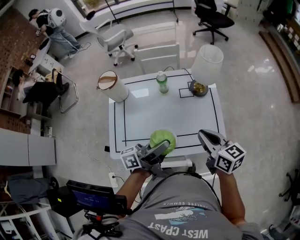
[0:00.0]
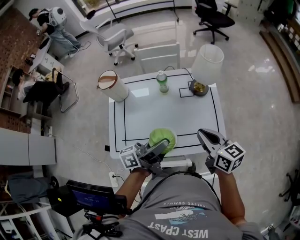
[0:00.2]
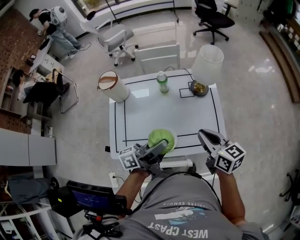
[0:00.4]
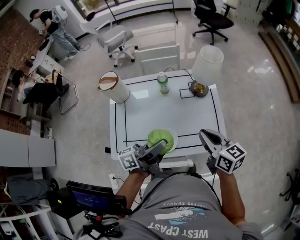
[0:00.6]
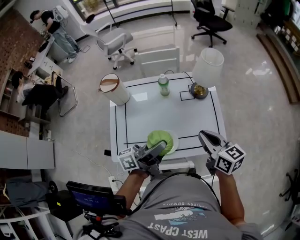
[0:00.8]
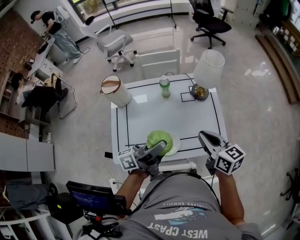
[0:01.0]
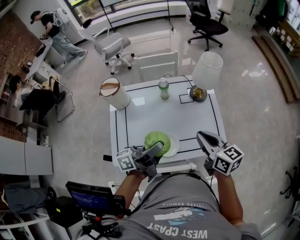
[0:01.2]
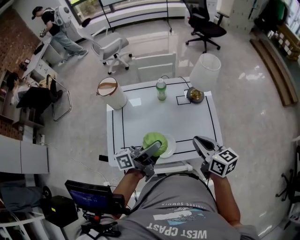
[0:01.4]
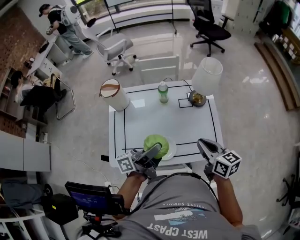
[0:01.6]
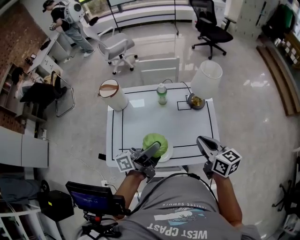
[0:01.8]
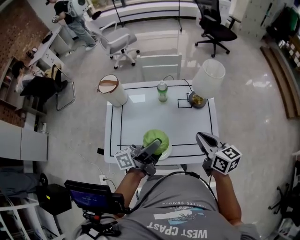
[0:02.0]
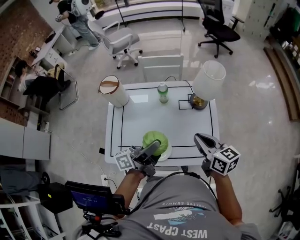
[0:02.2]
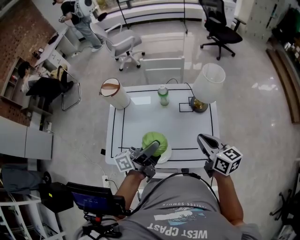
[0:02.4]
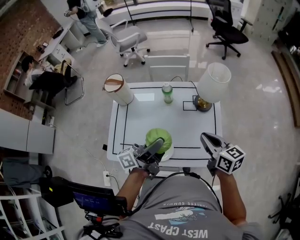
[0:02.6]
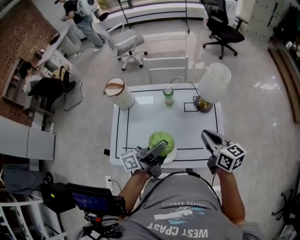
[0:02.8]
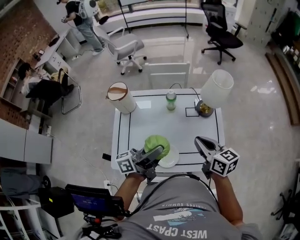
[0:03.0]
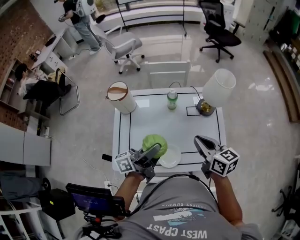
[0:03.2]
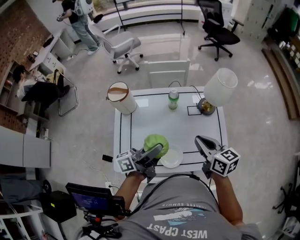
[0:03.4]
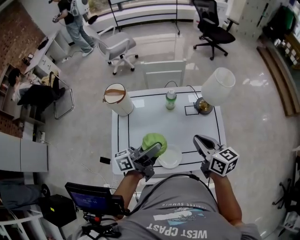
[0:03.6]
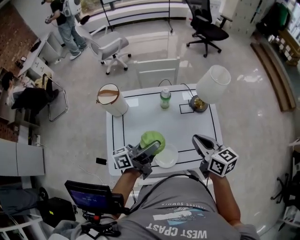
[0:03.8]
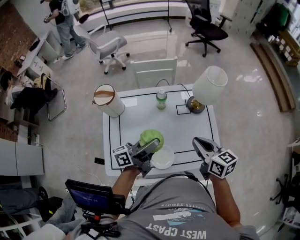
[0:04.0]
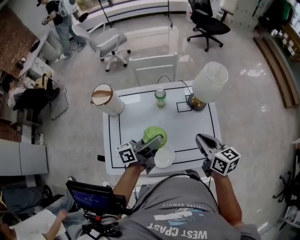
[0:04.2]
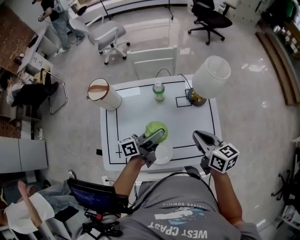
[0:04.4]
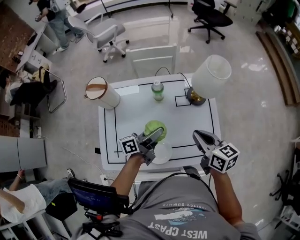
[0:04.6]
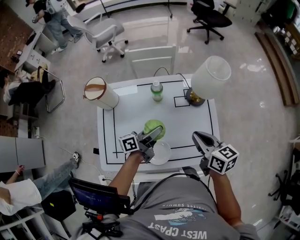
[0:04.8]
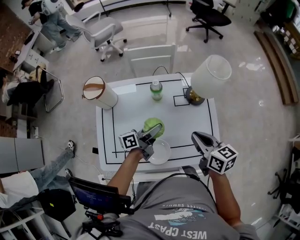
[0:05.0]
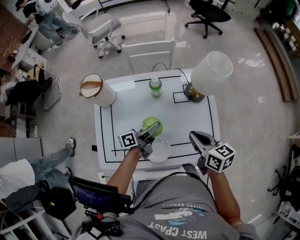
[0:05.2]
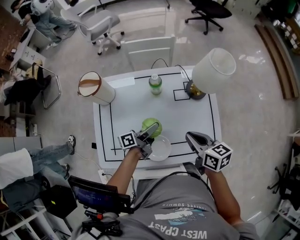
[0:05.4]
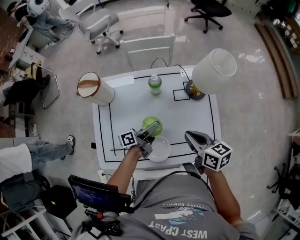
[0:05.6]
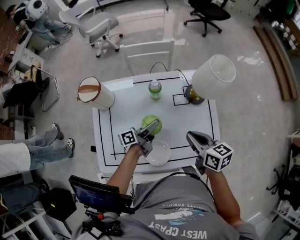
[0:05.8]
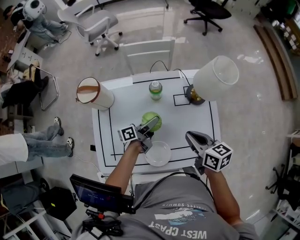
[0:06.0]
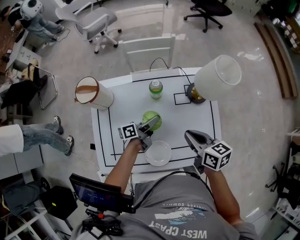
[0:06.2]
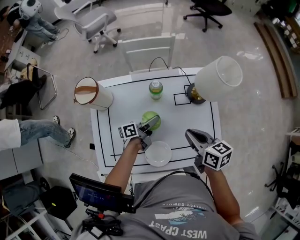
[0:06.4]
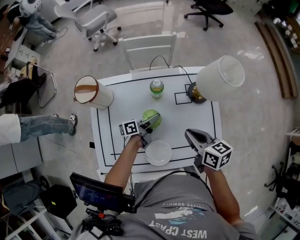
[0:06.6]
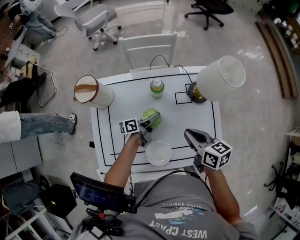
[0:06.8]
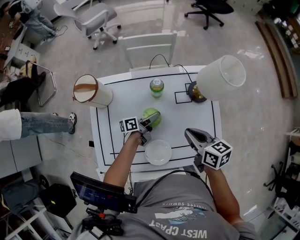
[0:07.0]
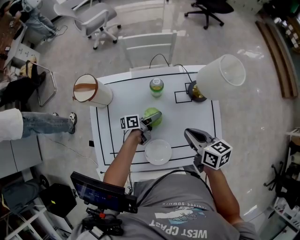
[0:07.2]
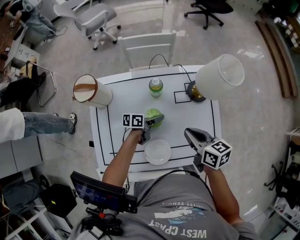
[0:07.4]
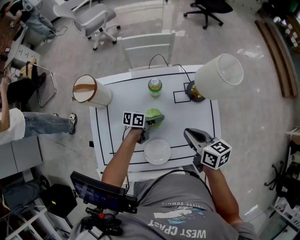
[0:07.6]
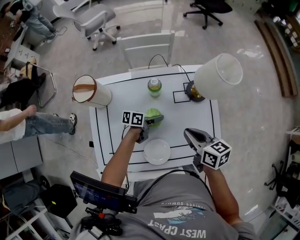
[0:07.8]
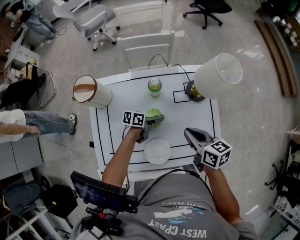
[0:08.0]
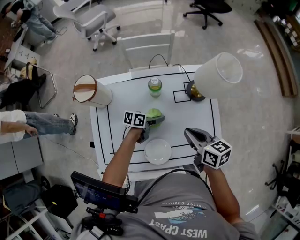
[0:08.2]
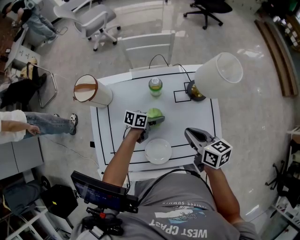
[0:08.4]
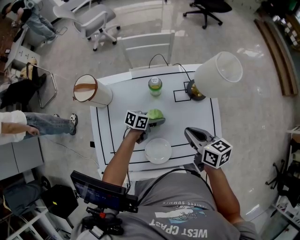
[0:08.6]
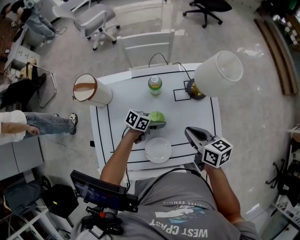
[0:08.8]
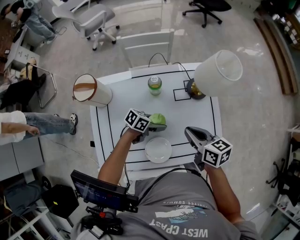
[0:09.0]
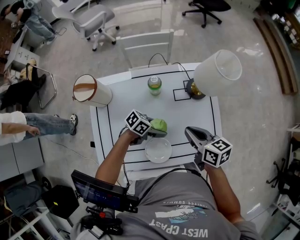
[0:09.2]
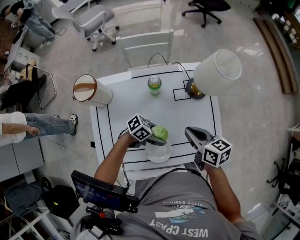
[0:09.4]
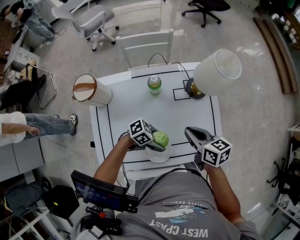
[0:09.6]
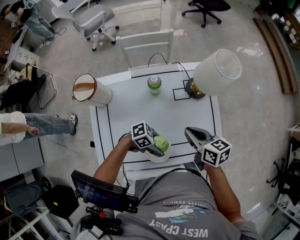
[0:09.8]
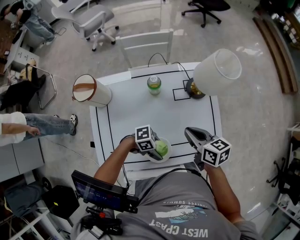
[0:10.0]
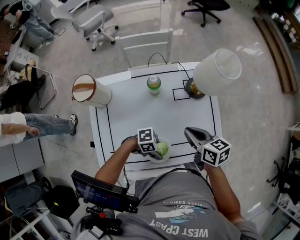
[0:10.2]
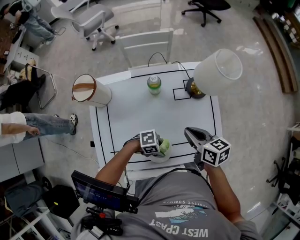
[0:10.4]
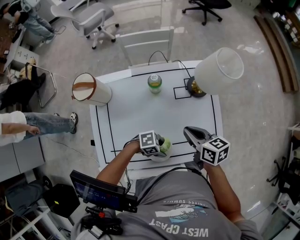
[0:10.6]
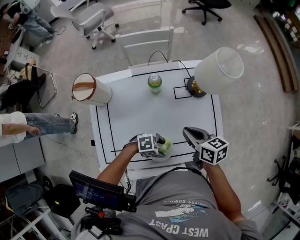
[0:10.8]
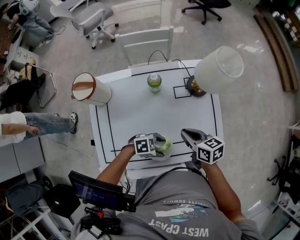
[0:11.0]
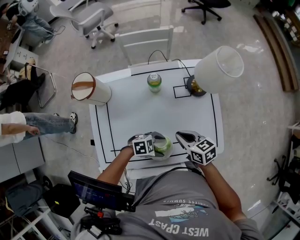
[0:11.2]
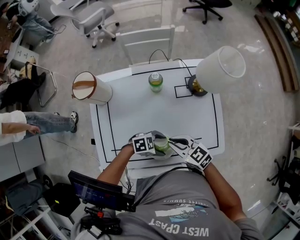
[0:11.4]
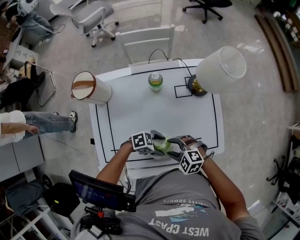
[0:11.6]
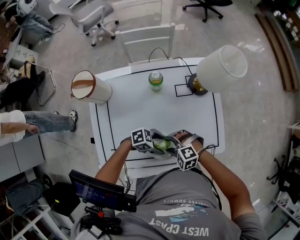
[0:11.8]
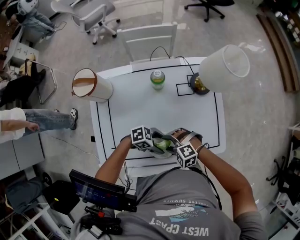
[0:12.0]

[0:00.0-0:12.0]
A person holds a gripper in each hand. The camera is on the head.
0:00.0 to 0:01.6: The grippers stay close to where they were, moving slightly.
0:01.6 to 0:03.0: The right gripper is displaced forward by about 5 cm.
0:03.0 to 0:04.4: The left gripper heads downward and forward, covering roughly 15 cm.
0:04.4 to 0:06.0: The right gripper moves downward, some 5 cm. Meanwhile the left gripper travels downward and forward by roughly 15 cm.
0:06.0 to 0:07.6: The left gripper is displaced downward by about 10 cm, and rotates roughly 30 degrees.
0:07.6 to 0:09.0: The left gripper moves about 5 cm, and changes its angle by roughly 30 degrees.
0:09.0 to 0:10.4: The left gripper shifts by some 15 cm, rotates some 50 degrees, and closes up.
0:10.4 to 0:12.0: The left gripper opens. Meanwhile the right gripper shifts by some 20 cm, rolls counterclockwise, seen from behind, by some 80 degrees, and opens.

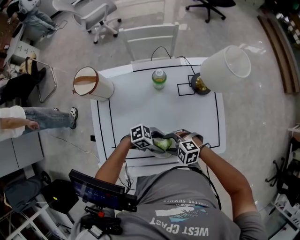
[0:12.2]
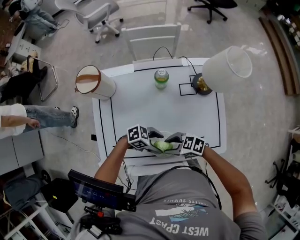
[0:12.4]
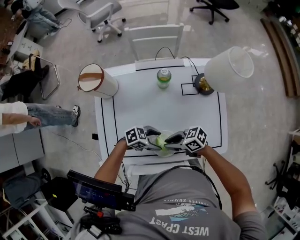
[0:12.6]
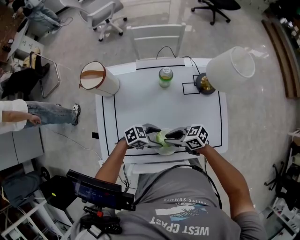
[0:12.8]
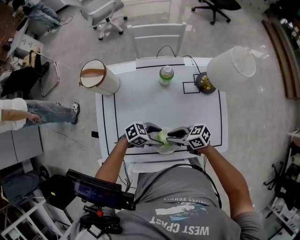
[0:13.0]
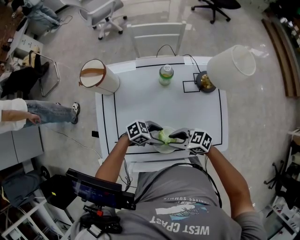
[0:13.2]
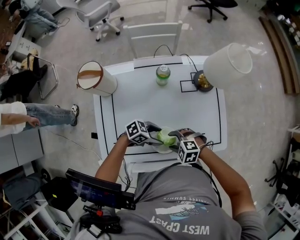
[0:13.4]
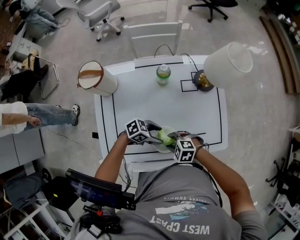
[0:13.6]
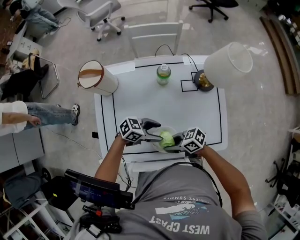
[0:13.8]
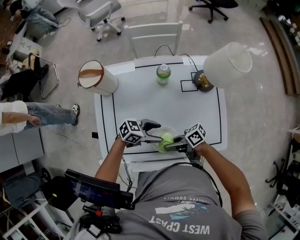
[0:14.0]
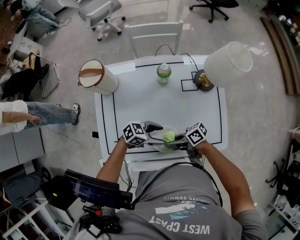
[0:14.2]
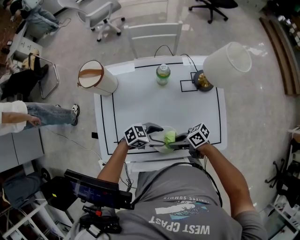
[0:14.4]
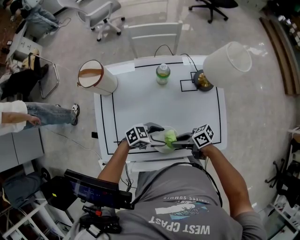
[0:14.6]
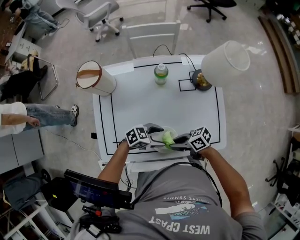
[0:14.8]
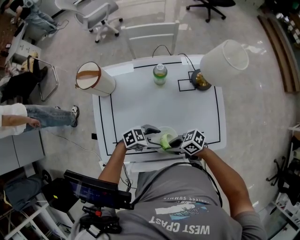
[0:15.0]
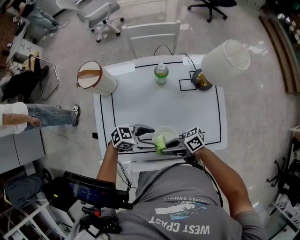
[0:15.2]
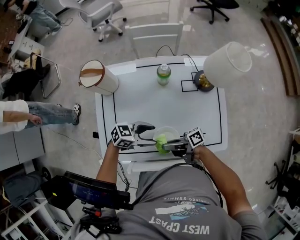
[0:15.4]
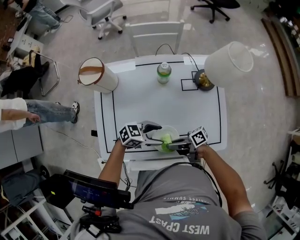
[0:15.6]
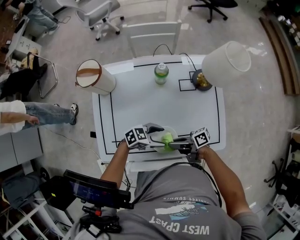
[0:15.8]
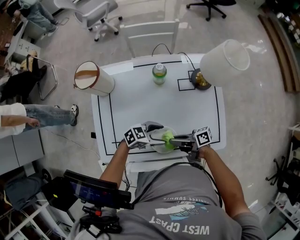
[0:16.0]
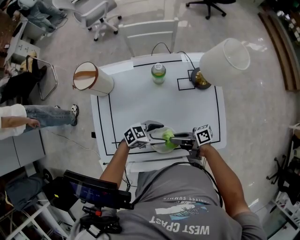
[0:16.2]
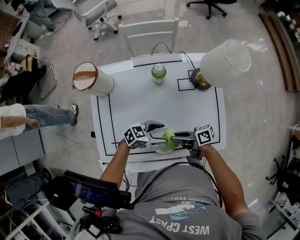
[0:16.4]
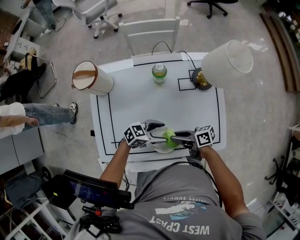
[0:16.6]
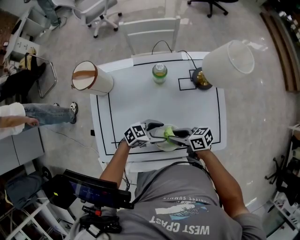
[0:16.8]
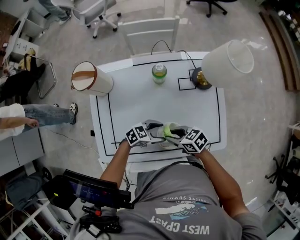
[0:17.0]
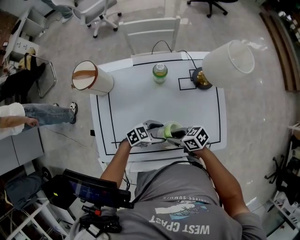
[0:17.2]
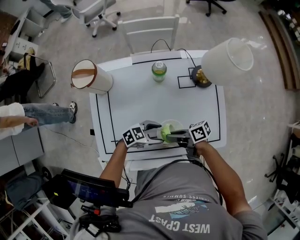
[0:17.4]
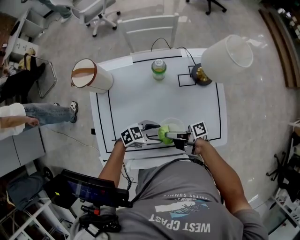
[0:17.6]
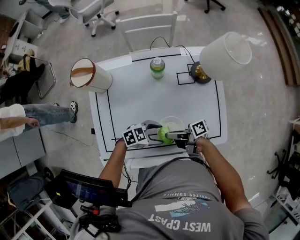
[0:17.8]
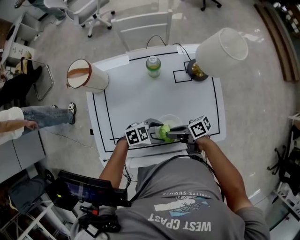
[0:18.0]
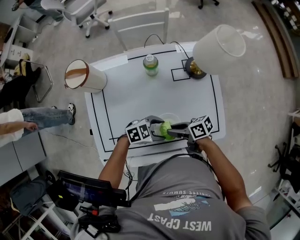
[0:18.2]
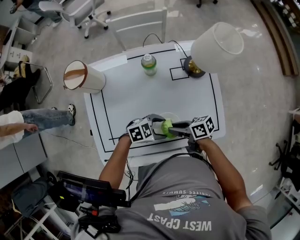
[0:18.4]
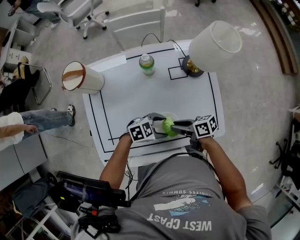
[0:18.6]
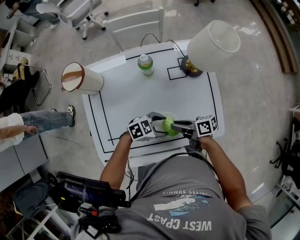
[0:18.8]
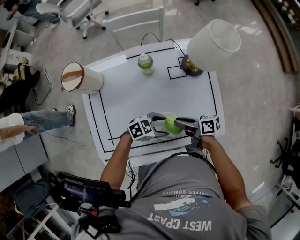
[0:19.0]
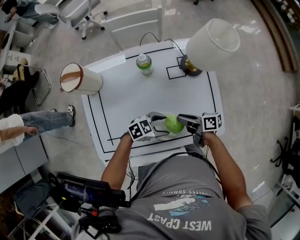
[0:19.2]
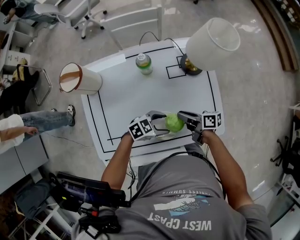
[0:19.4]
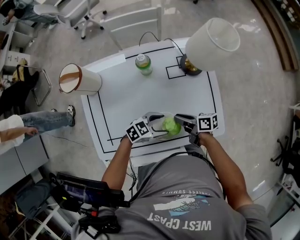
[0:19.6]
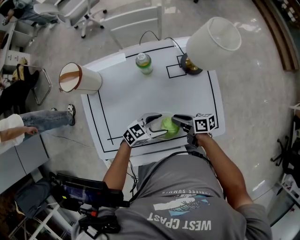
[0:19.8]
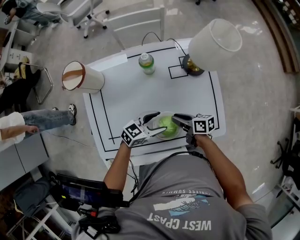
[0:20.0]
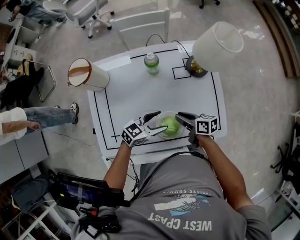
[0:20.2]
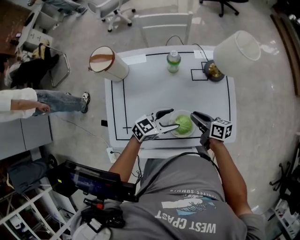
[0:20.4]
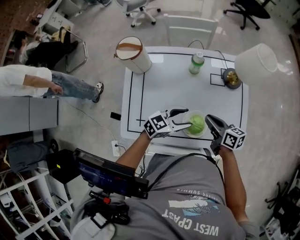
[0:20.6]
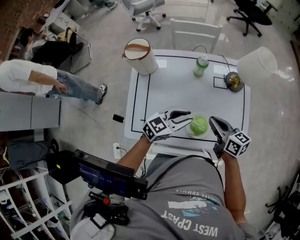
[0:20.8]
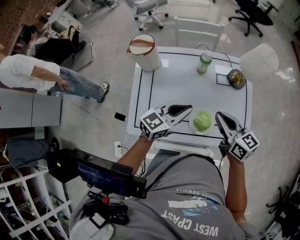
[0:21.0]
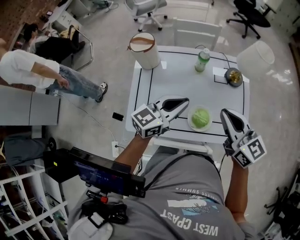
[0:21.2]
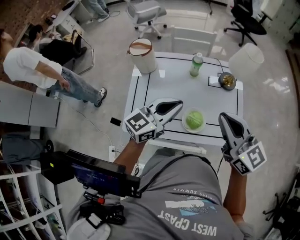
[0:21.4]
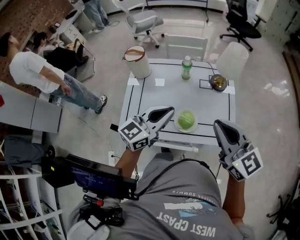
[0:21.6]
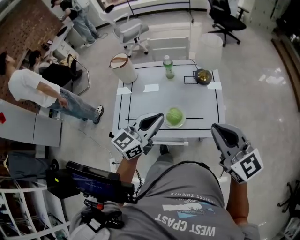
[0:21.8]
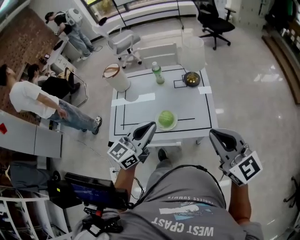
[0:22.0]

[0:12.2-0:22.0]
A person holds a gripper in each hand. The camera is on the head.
0:13.6 to 0:15.0: The right gripper angles its fingers upward, by approximately 30 degrees, and closes.
0:15.0 to 0:16.4: The right gripper ends up approximately 10 cm from where it was, and rotates approximately 40 degrees.
0:17.8 to 0:19.2: The right gripper changes place by roughly 10 cm, and turns by roughly 30 degrees. Meanwhile the left gripper shifts by some 5 cm.
0:19.2 to 0:20.6: The two grippers go roughly 10 cm upward. The left gripper swivels approximately 30 degrees. The right gripper changes its angle by approximately 20 degrees.
0:20.6 to 0:22.0: The left gripper heads upward and backward, covering approximately 30 cm, rotates approximately 30 degrees, and closes its fingers. The right gripper shifts approximately 40 cm upward, backward and to the right, and rolls counterclockwise, seen from behind, by some 50 degrees.

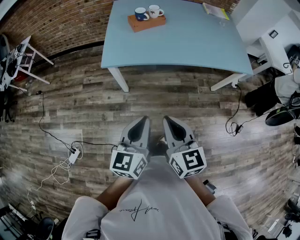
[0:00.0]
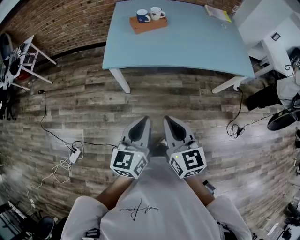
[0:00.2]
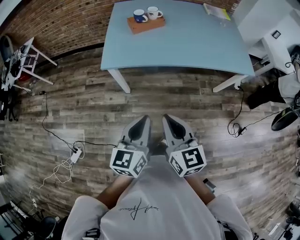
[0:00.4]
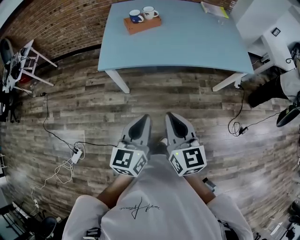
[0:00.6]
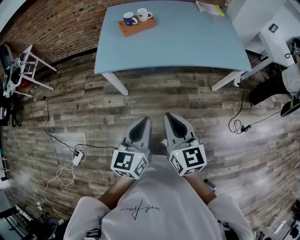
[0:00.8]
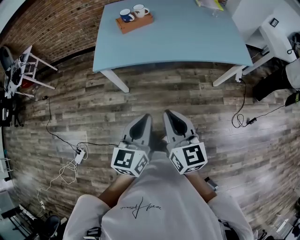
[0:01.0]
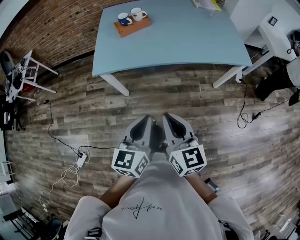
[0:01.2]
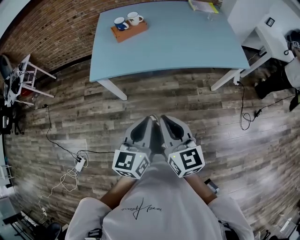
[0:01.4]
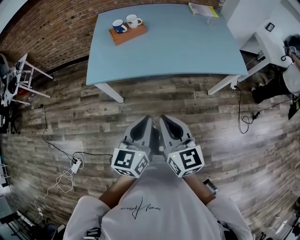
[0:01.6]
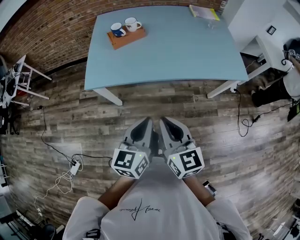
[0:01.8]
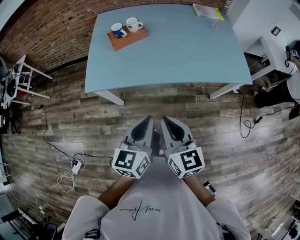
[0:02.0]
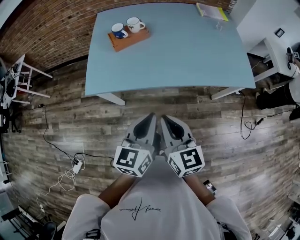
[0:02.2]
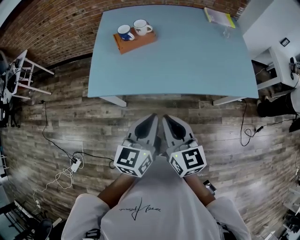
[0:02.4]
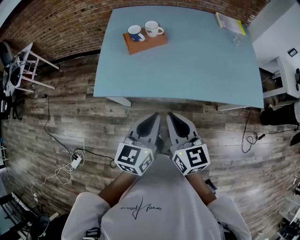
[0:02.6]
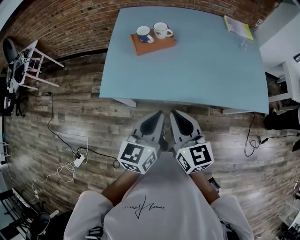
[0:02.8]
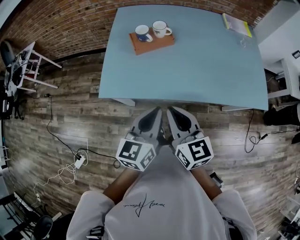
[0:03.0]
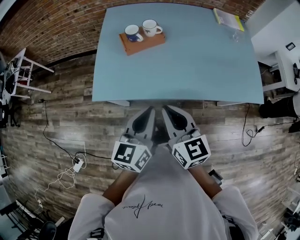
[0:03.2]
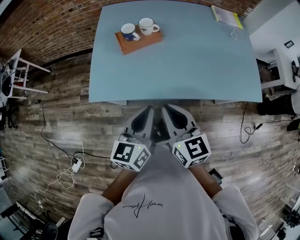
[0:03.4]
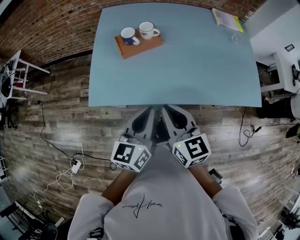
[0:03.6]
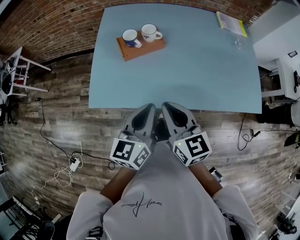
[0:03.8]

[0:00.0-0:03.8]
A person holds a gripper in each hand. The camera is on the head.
0:00.0 to 0:01.2: Both grippers move to the right, some 10 cm.
0:01.2 to 0:02.6: Both grippers move forward, approximately 20 cm.
0:02.6 to 0:03.8: The two grippers go about 10 cm forward.
